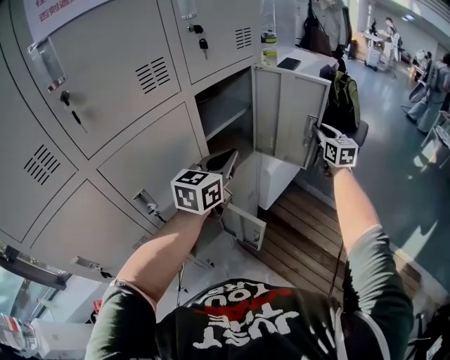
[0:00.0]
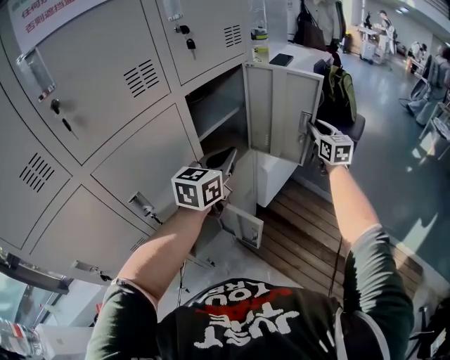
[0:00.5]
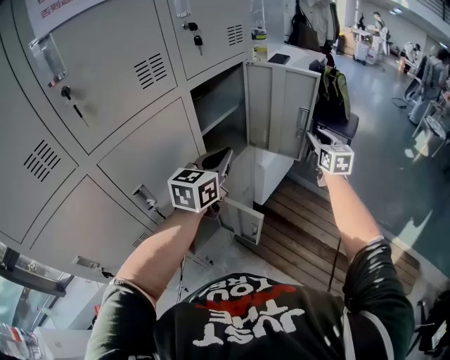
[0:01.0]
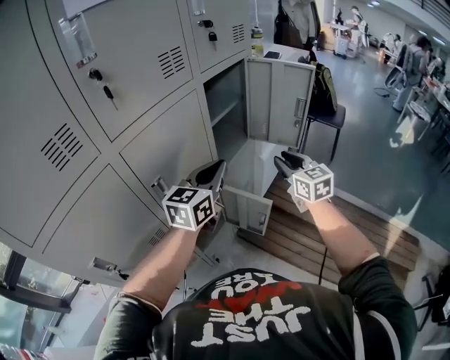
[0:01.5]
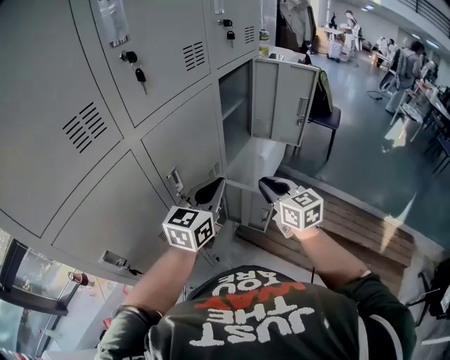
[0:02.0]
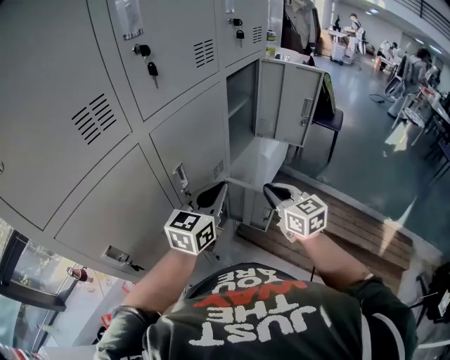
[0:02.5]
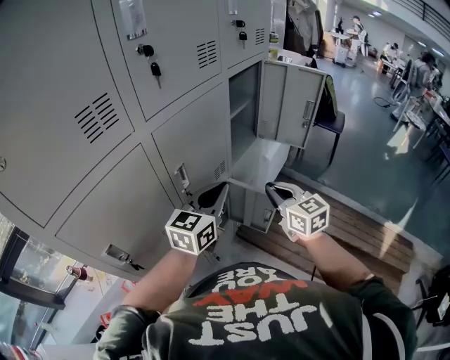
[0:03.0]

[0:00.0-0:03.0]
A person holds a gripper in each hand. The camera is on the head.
0:00.0 to 0:01.5: The left gripper moves backward and to the left, about 10 cm; the right gripper is displaced backward and to the left by roughly 30 cm.
0:01.5 to 0:03.0: The right gripper travels backward and to the left by approximately 15 cm, and closes its fingers. Meanwhile the left gripper travels backward and to the left by some 10 cm.

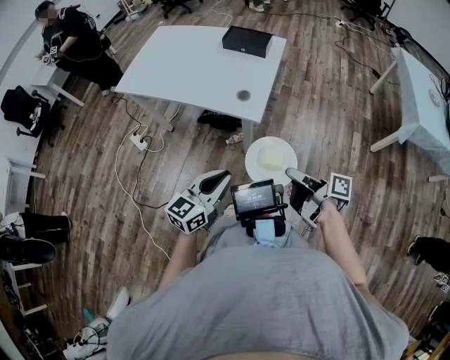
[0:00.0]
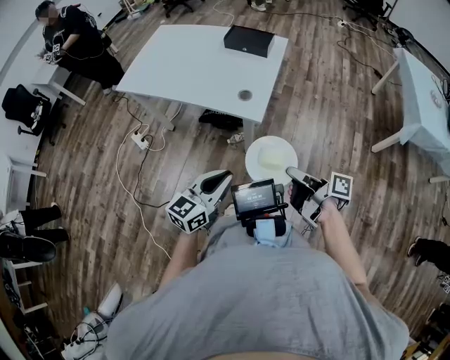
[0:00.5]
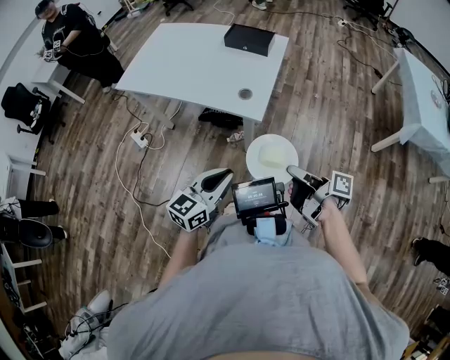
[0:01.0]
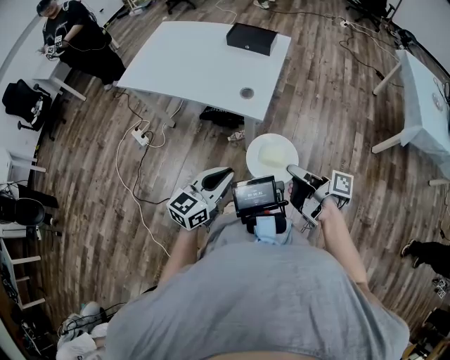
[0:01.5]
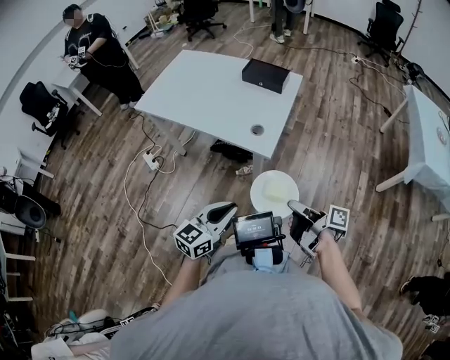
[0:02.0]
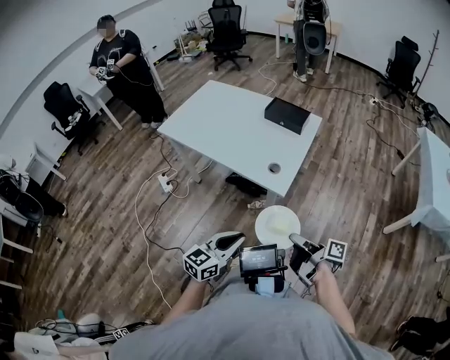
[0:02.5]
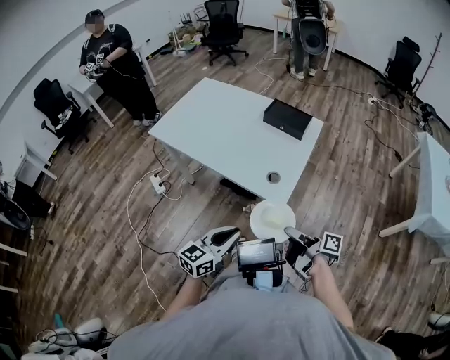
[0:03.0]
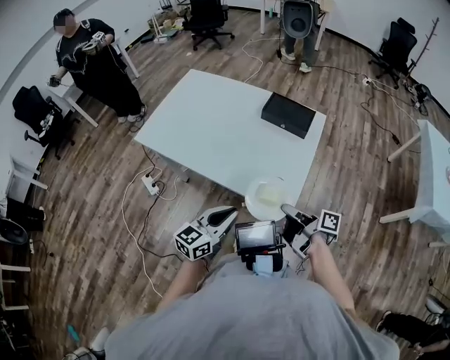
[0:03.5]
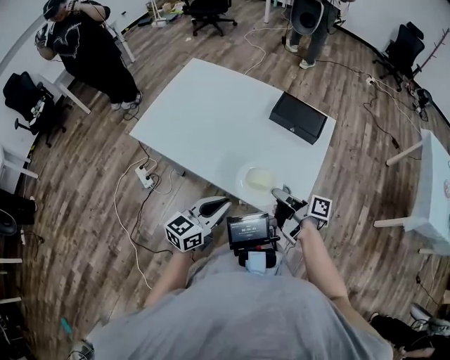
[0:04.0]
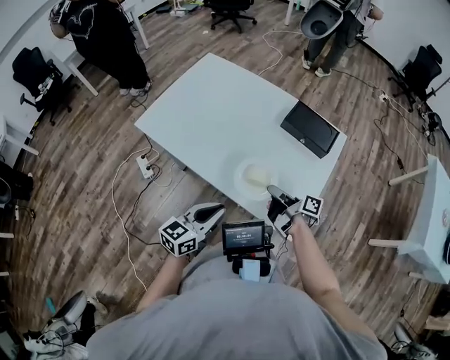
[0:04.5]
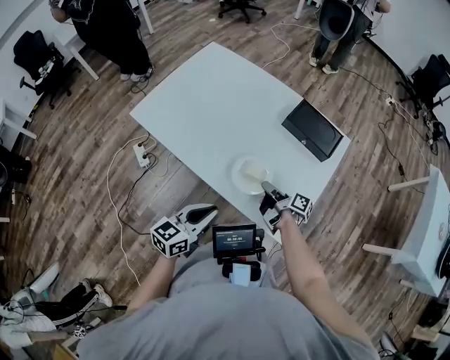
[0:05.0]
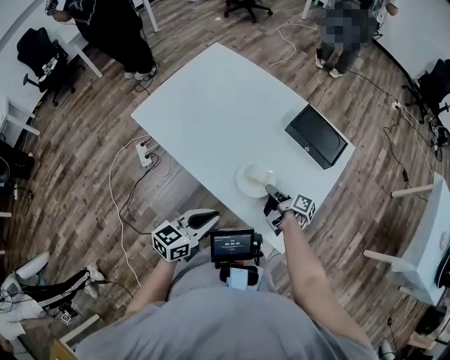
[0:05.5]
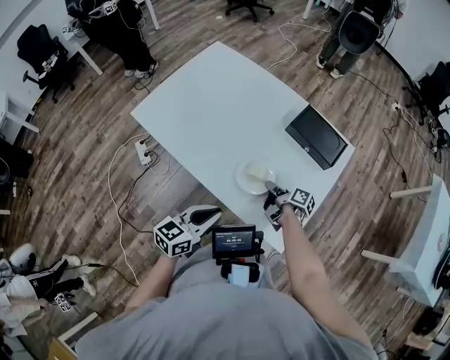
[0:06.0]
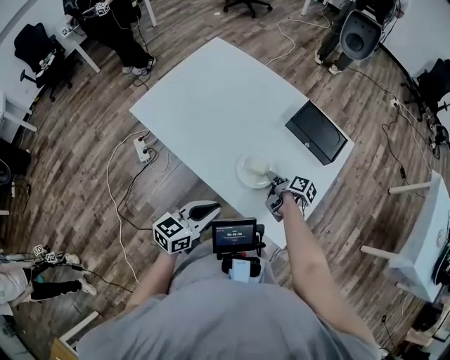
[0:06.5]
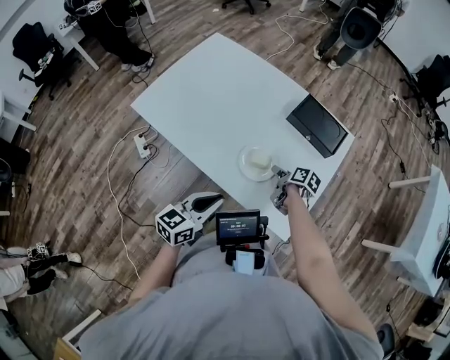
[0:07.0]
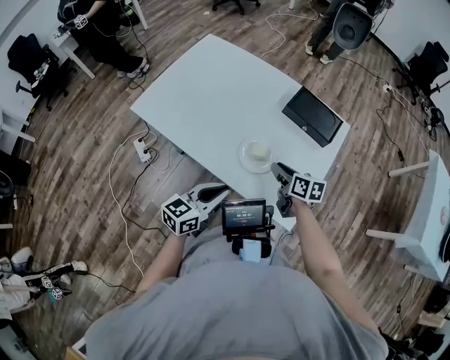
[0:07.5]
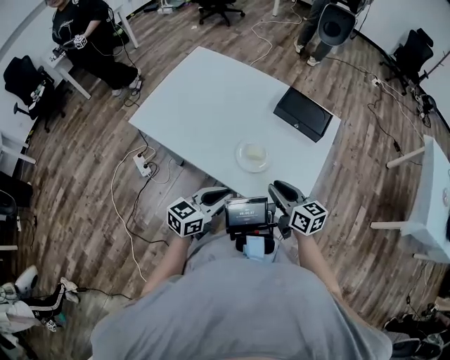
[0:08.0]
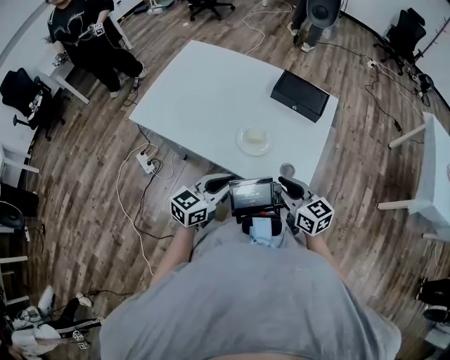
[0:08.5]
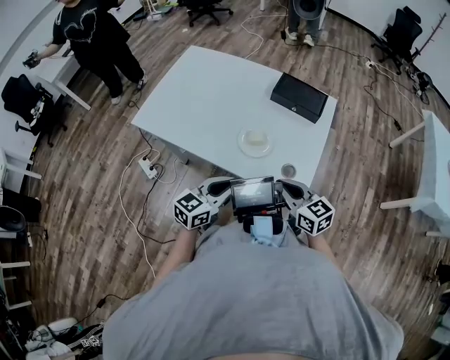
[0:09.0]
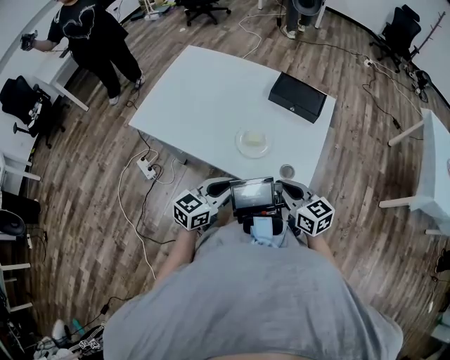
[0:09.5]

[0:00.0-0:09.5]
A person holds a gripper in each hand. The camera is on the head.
0:02.0 to 0:04.0: The left gripper moves approximately 35 cm.
0:04.0 to 0:05.5: The left gripper shifts some 5 cm downward.

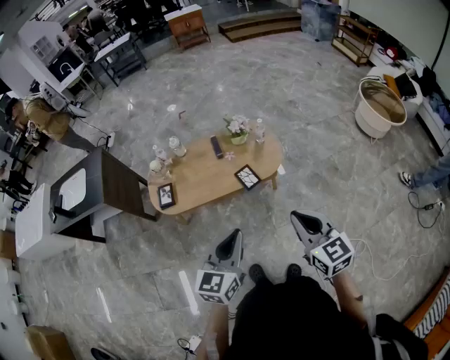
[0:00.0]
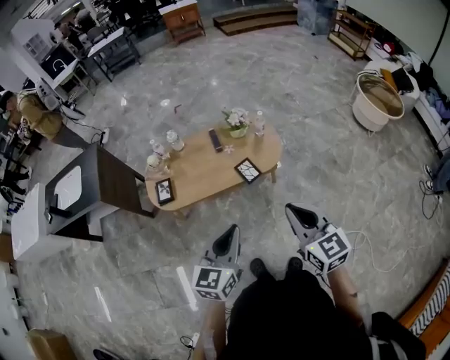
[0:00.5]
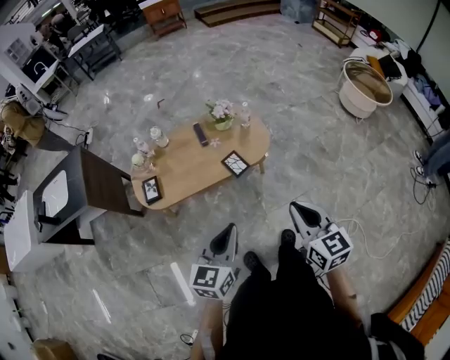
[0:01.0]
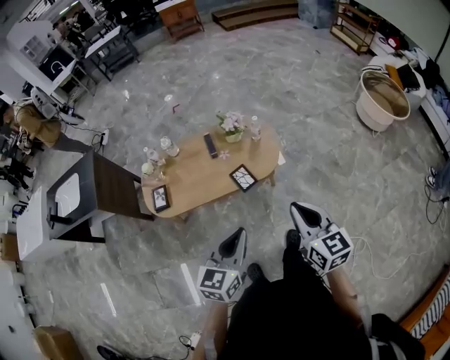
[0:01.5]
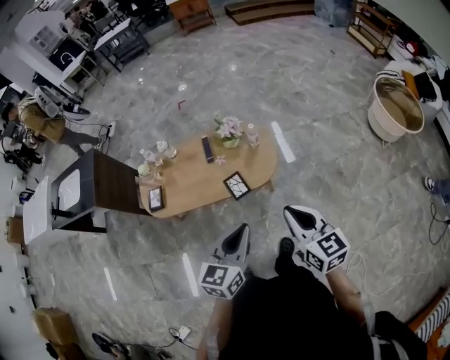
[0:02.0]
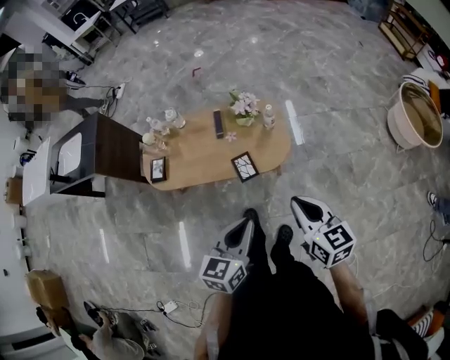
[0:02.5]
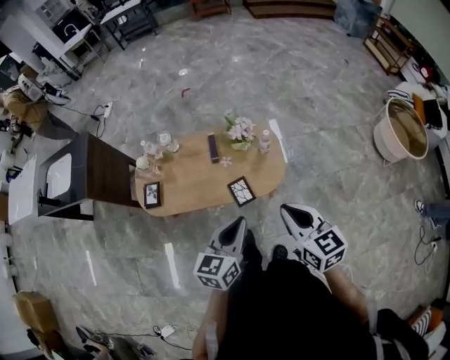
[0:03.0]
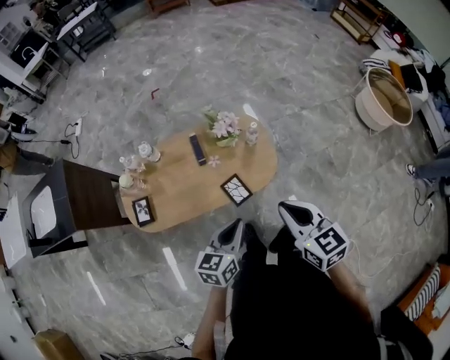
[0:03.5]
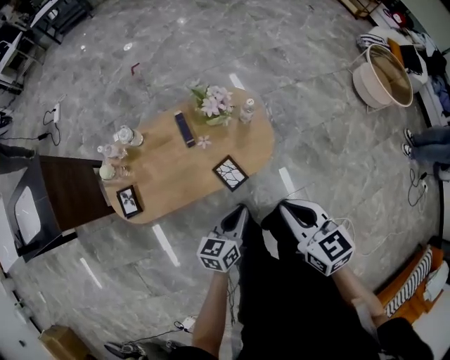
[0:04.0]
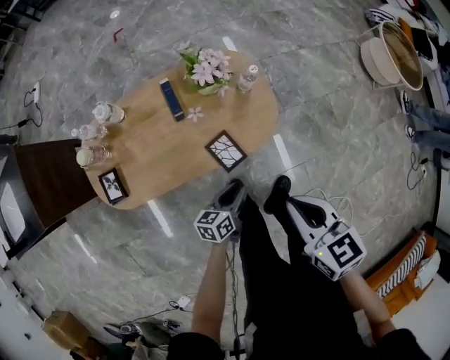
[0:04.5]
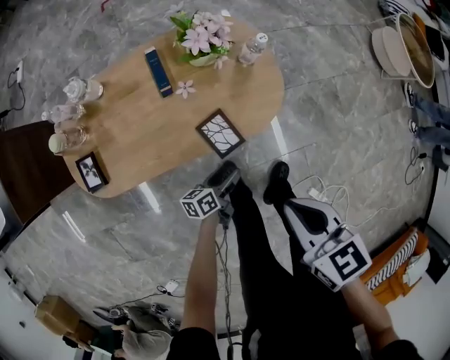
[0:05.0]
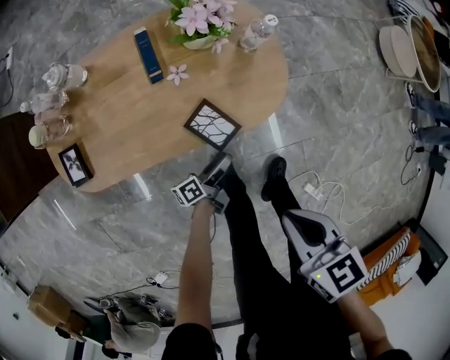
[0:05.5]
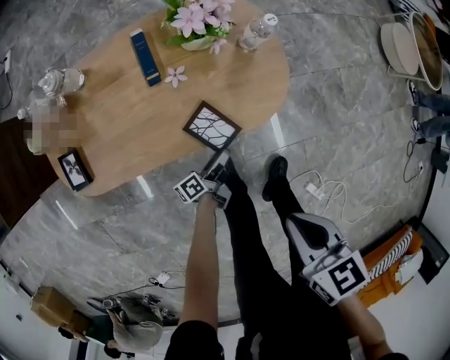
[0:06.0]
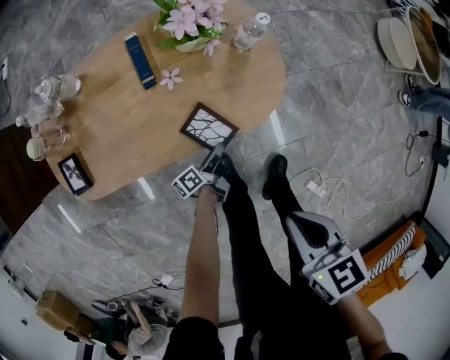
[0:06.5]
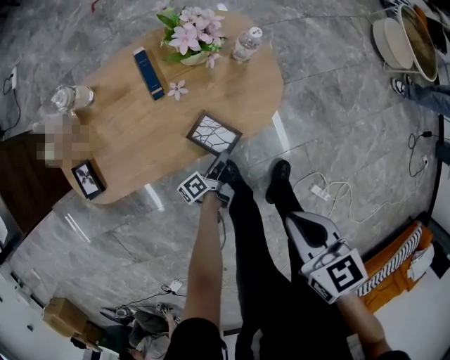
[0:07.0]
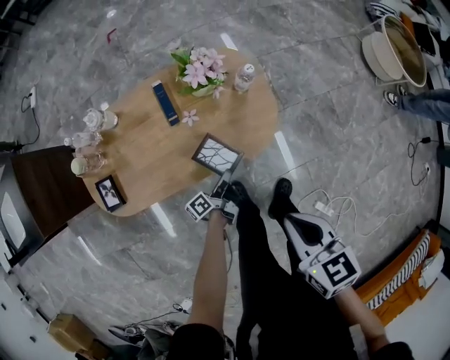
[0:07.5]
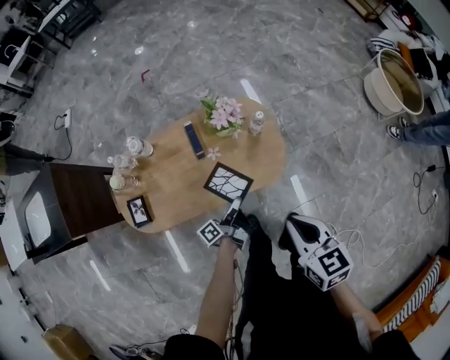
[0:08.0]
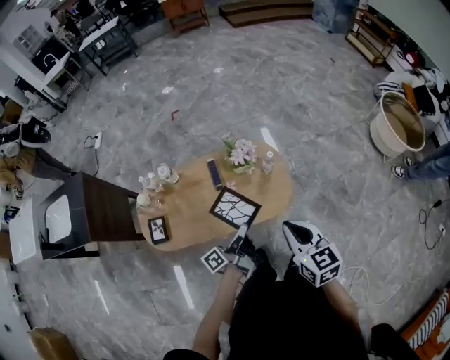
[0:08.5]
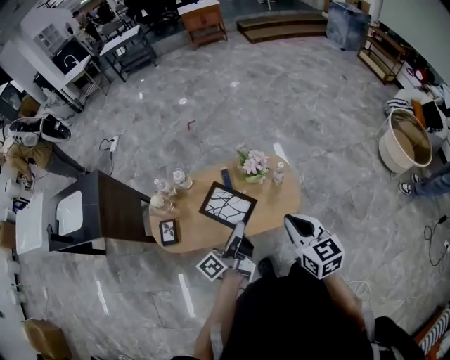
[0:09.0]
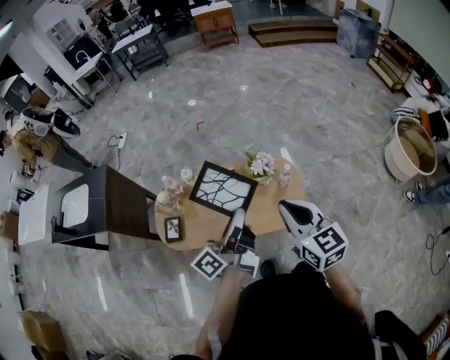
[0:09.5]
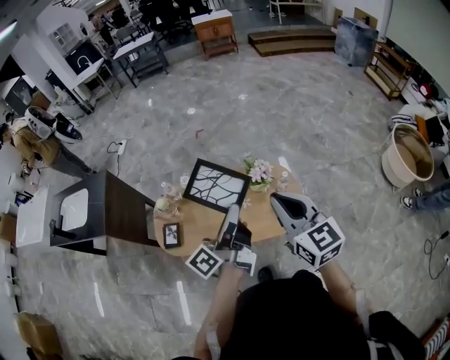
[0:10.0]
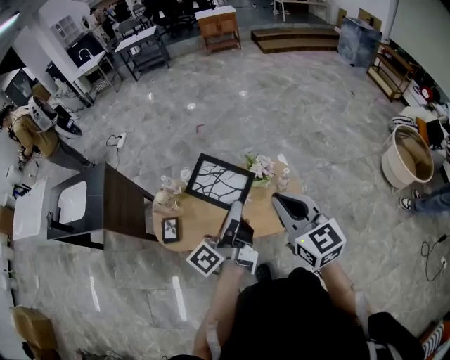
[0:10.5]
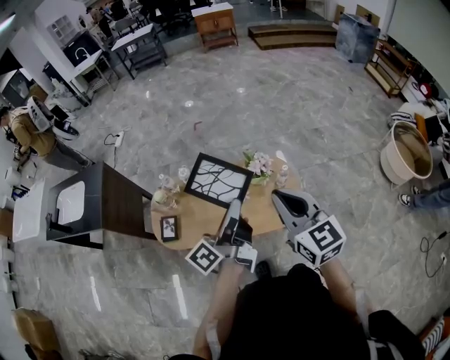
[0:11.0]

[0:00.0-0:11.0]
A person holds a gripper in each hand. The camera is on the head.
0:00.0 to 0:02.0: The two grippers go roughly 20 cm forward and to the right.
0:02.0 to 0:03.5: The left gripper moves forward, downward and to the left, roughly 20 cm, while the right gripper travels forward and to the left by approximately 20 cm.
0:03.5 to 0:05.5: The left gripper heads downward, covering about 40 cm, rotates around the line of its fingers by roughly 60 degrees, counterclockwise from behind, and opens. Meanwhile the right gripper is displaced downward by about 25 cm, and turns by roughly 30 degrees.
0:05.5 to 0:07.5: Both grippers travel together upward, some 10 cm. The left gripper closes up.
0:07.5 to 0:09.0: The left gripper shifts roughly 40 cm upward, and rotates approximately 30 degrees. The right gripper goes approximately 15 cm upward, and rotates some 30 degrees.
0:09.0 to 0:11.0: Both grippers travel together upward, approximately 15 cm.

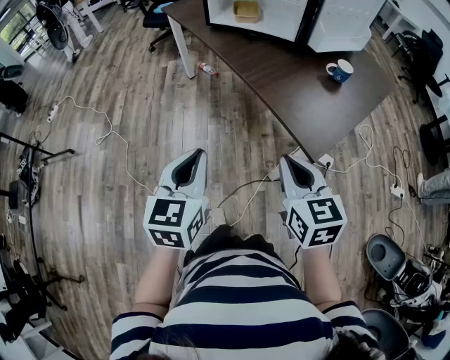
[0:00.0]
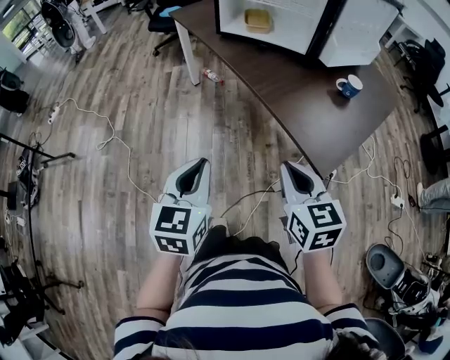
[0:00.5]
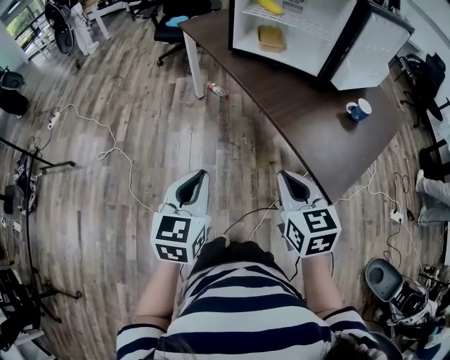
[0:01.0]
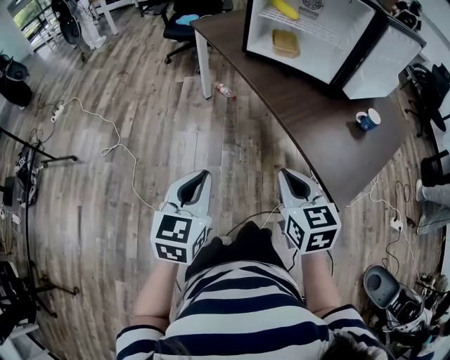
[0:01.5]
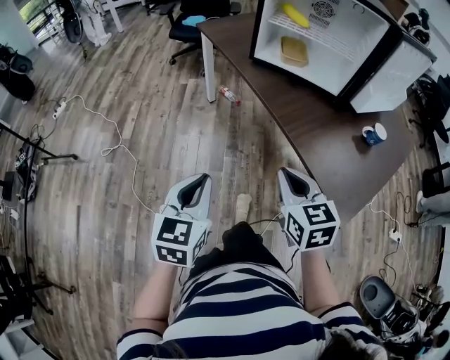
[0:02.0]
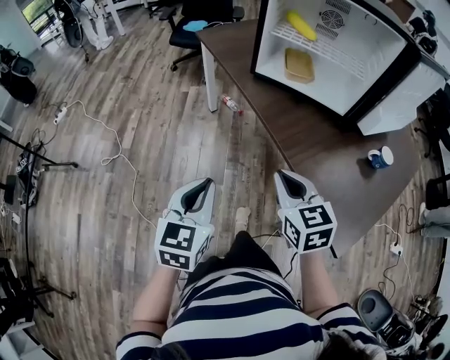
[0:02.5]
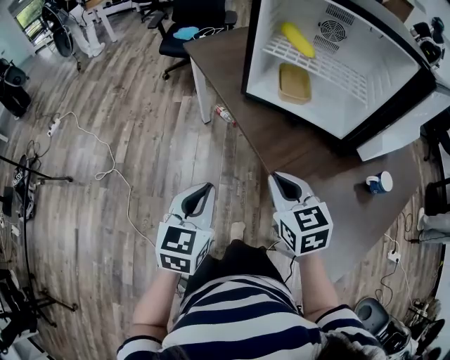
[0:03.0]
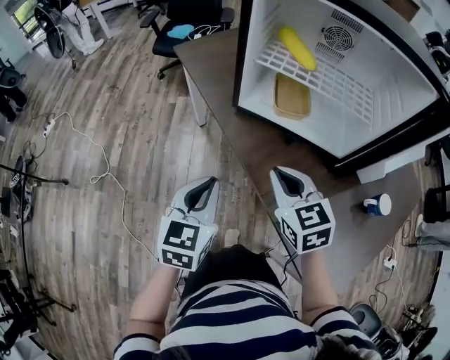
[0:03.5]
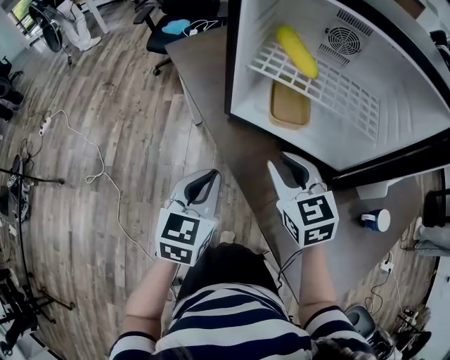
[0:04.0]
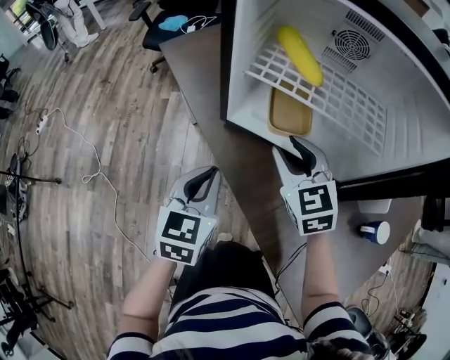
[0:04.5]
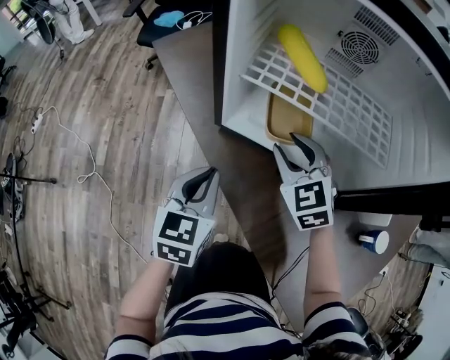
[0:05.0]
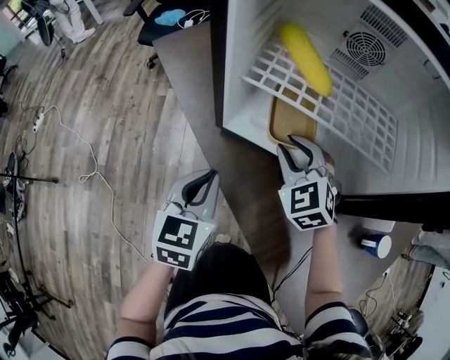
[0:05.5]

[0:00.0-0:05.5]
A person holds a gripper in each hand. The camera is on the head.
0:00.0 to 0:02.0: The grippers both shift forward and to the left by about 20 cm.
0:02.0 to 0:03.5: The two grippers go roughly 30 cm forward.
0:03.5 to 0:05.5: The two grippers go about 20 cm forward. The right gripper changes its angle by about 30 degrees, and opens.
